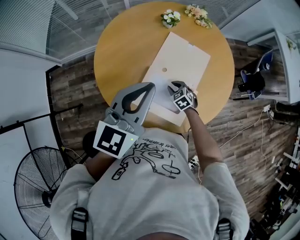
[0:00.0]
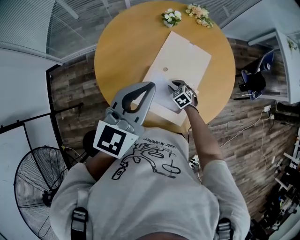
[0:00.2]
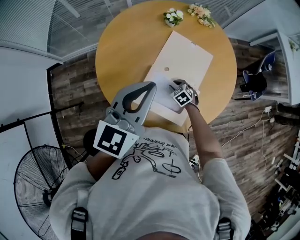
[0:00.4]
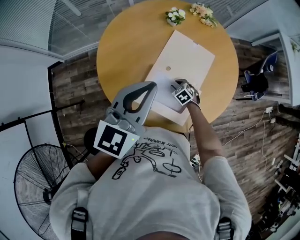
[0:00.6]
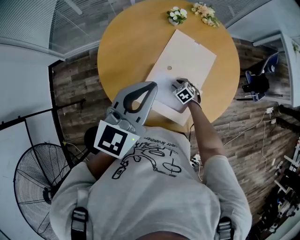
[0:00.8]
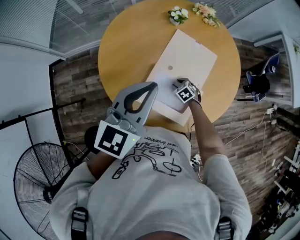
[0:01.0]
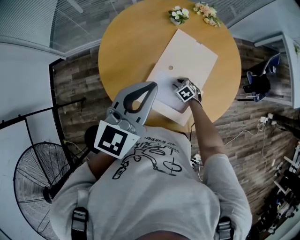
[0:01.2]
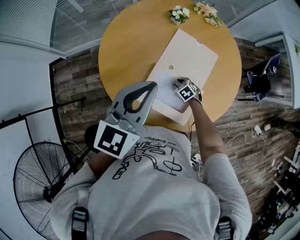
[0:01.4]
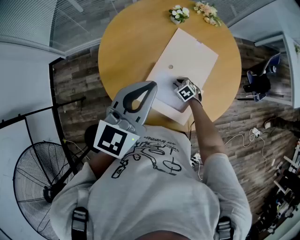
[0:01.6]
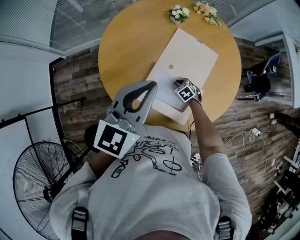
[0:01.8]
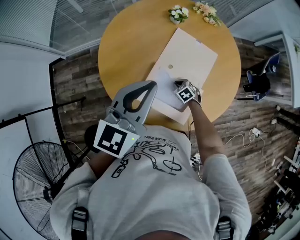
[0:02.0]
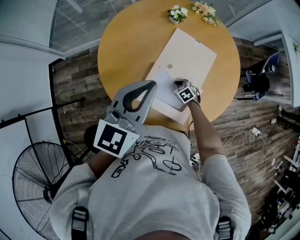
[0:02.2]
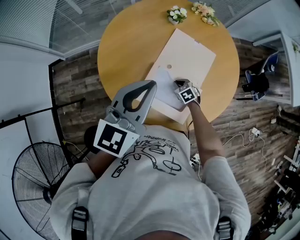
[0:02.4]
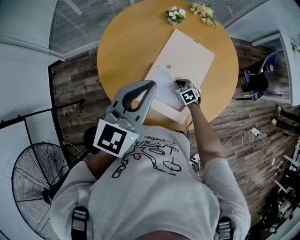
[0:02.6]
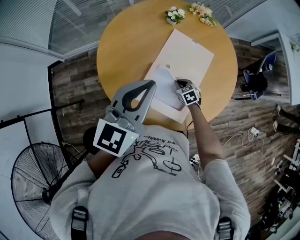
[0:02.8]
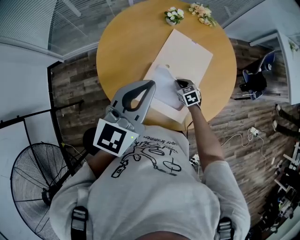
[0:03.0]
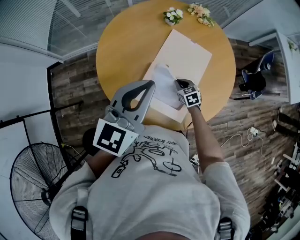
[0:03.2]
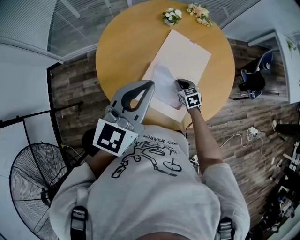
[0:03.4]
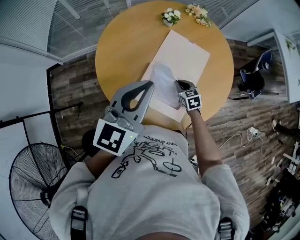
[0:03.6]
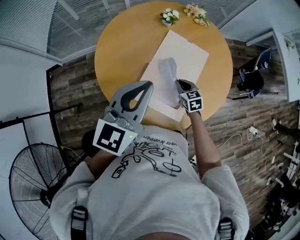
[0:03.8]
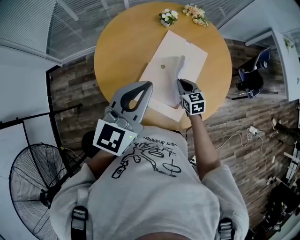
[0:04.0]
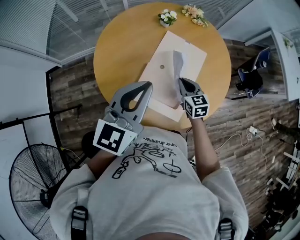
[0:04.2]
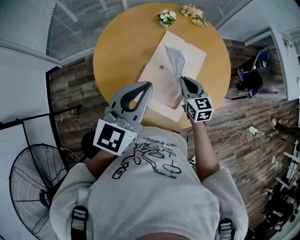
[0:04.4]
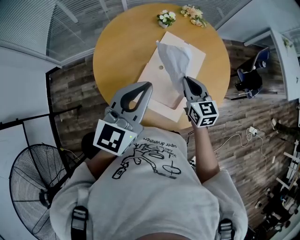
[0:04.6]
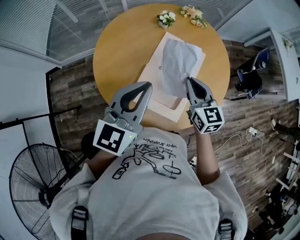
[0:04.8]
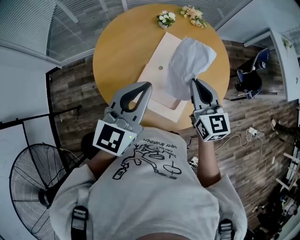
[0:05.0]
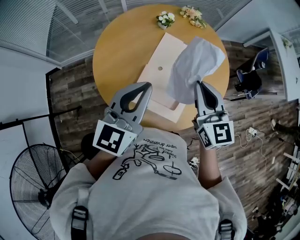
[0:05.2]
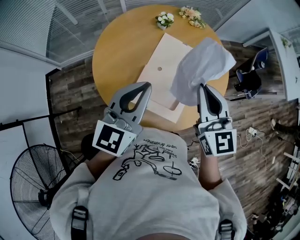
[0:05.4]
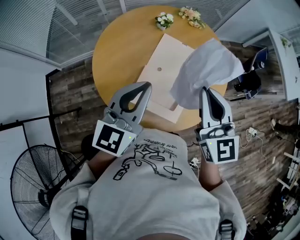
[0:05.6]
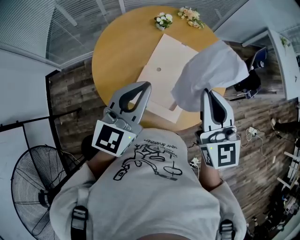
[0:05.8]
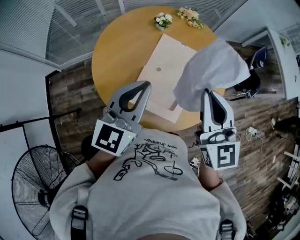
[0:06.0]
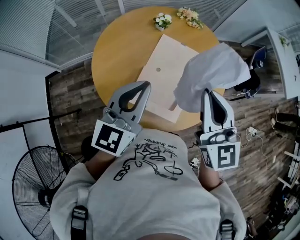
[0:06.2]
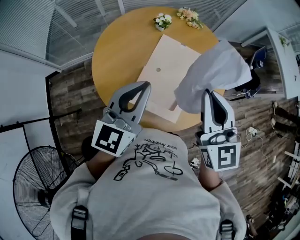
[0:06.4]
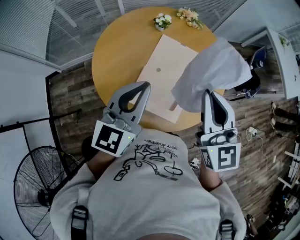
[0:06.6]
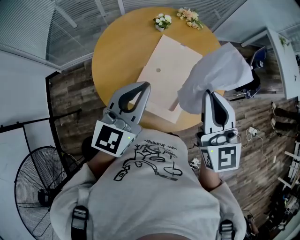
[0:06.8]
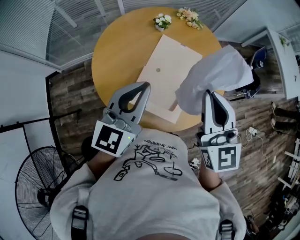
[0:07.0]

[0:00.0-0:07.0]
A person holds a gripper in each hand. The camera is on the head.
0.0 to 1.4 s: The right gripper moves downward, some 5 cm.
1.4 to 2.8 s: The right gripper moves upward, approximately 5 cm, and closes its fingers.
2.8 to 4.2 s: The right gripper shifts roughly 15 cm upward, and turns by some 30 degrees.
4.2 to 5.6 s: The right gripper moves upward, approximately 30 cm, and turns by roughly 30 degrees.
5.6 to 7.0 s: The grippers move only a little.

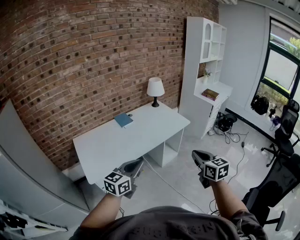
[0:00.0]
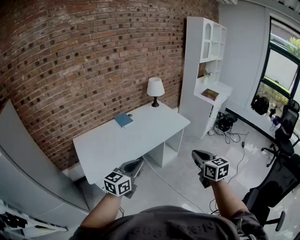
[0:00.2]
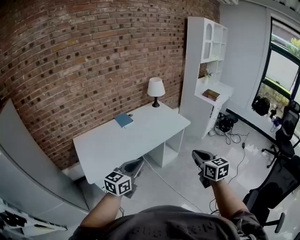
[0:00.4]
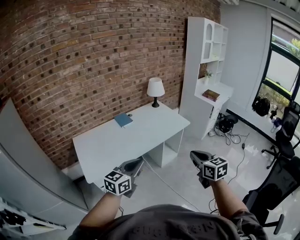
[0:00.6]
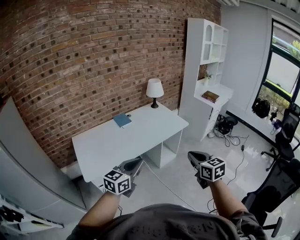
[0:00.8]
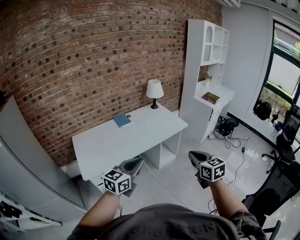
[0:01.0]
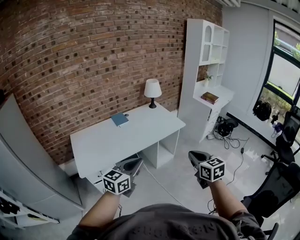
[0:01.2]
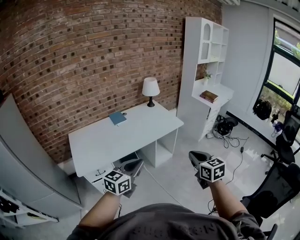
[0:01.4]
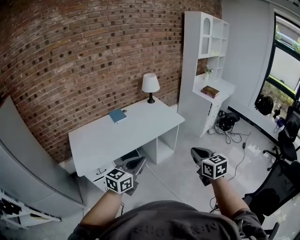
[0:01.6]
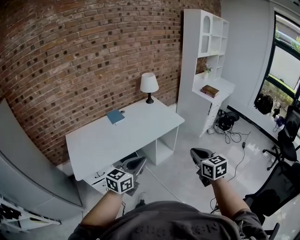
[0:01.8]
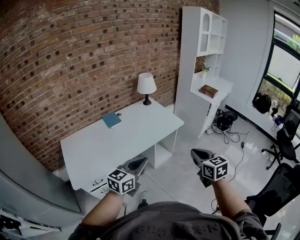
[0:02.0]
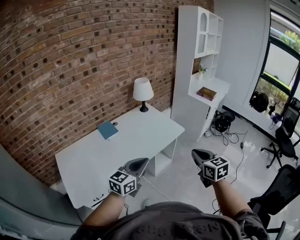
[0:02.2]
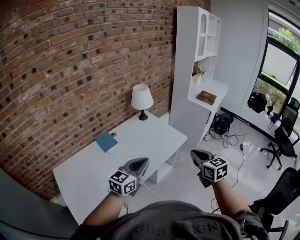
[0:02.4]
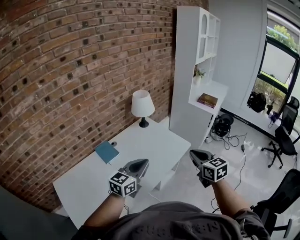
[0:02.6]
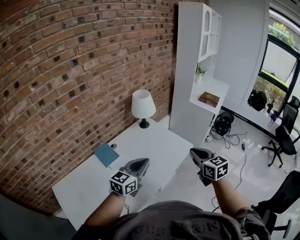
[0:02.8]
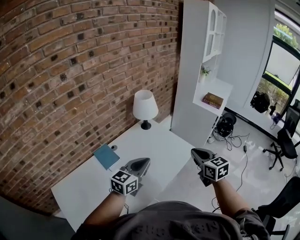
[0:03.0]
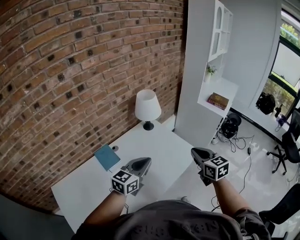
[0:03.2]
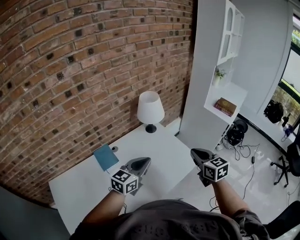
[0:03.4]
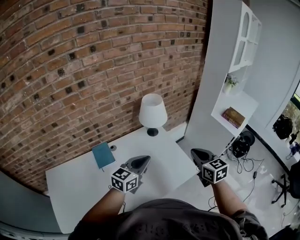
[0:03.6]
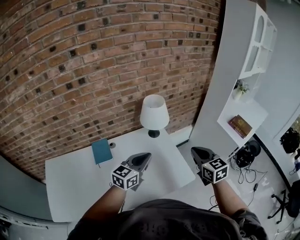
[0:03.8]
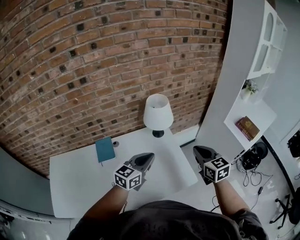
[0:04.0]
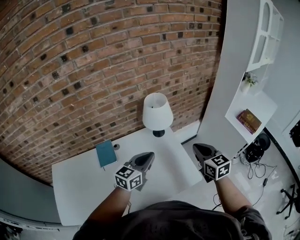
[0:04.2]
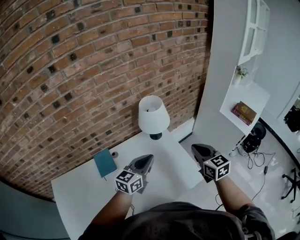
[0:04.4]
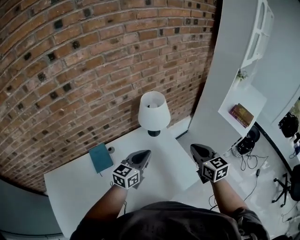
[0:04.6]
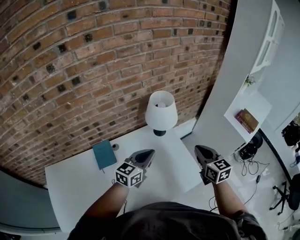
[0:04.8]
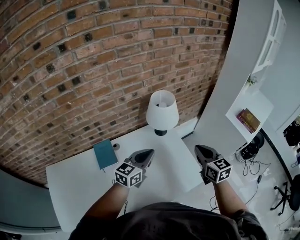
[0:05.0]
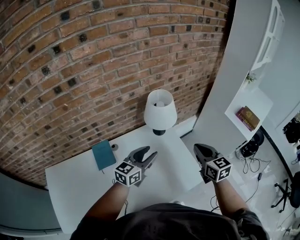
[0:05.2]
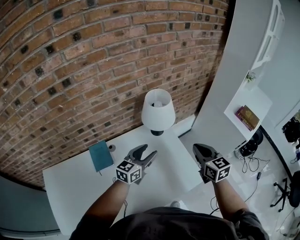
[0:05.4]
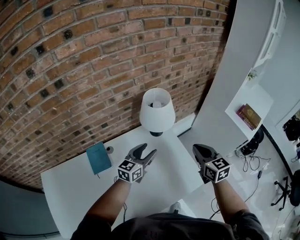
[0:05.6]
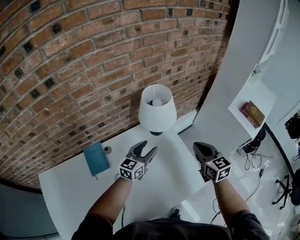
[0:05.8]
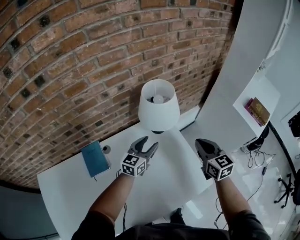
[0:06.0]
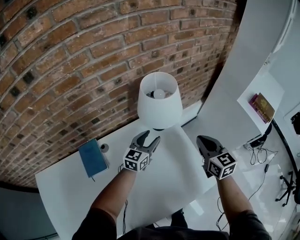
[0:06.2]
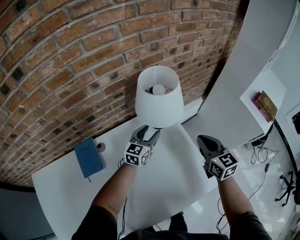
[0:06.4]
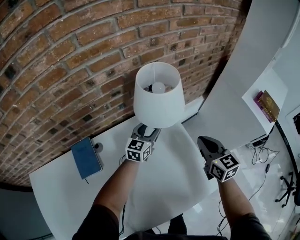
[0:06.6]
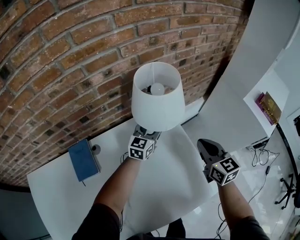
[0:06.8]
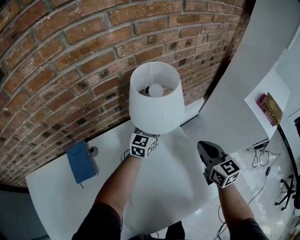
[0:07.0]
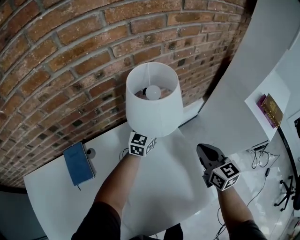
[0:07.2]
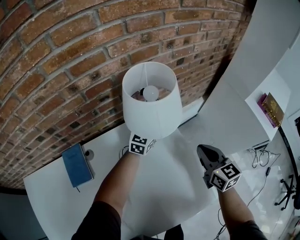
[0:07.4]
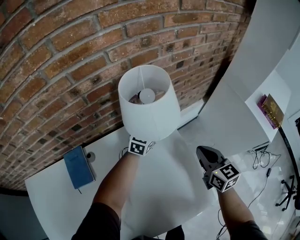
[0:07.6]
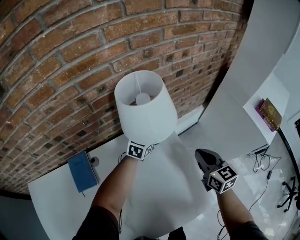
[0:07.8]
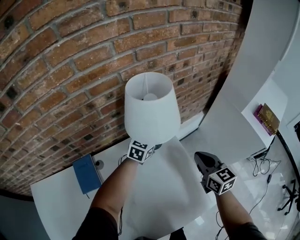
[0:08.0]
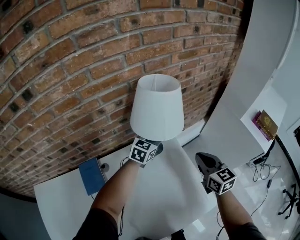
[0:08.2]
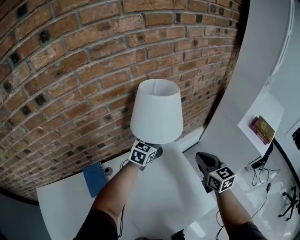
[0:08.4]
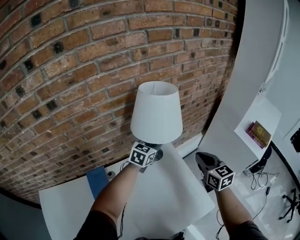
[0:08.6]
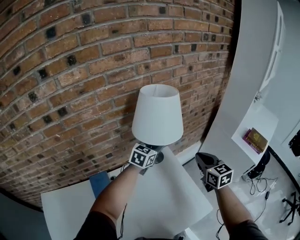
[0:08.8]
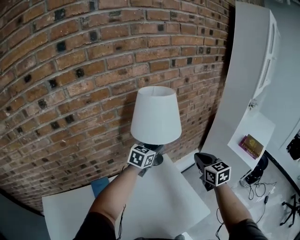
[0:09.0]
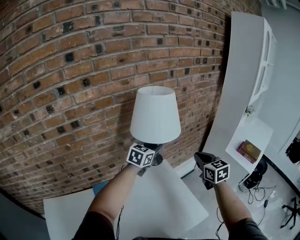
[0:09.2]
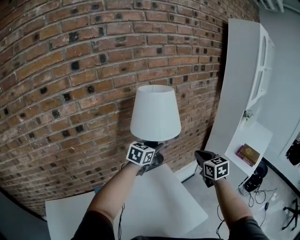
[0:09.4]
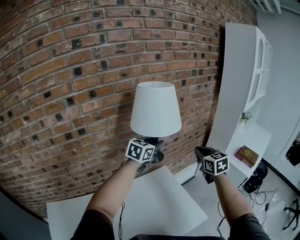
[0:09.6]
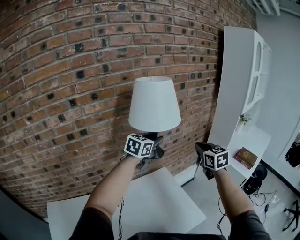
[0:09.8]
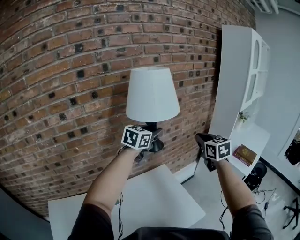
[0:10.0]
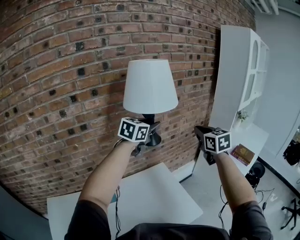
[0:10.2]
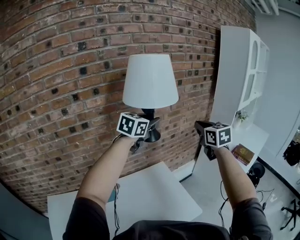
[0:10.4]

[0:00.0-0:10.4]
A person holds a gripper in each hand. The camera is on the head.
0.0 to 1.4 s: The grippers both shift to the right by about 10 cm.
1.4 to 3.0 s: The two grippers travel together, forward, some 50 cm.
3.0 to 4.4 s: Both grippers travel together forward, some 25 cm.
4.4 to 6.0 s: The left gripper travels downward and forward by approximately 25 cm, and opens, while the right gripper travels downward and forward by approximately 15 cm.
6.0 to 7.4 s: The right gripper shifts about 15 cm downward and forward. Meanwhile the left gripper heads forward and downward, covering some 20 cm.
7.4 to 9.0 s: Both grippers travel together upward, roughly 25 cm.
9.0 to 10.4 s: Both grippers travel together upward, some 25 cm.

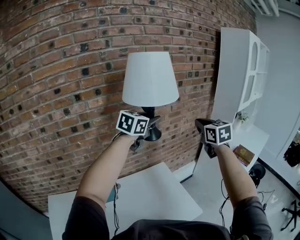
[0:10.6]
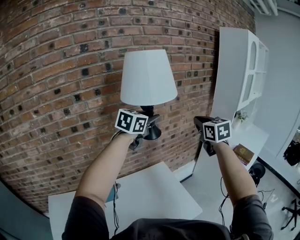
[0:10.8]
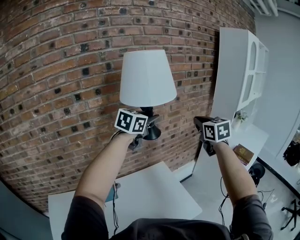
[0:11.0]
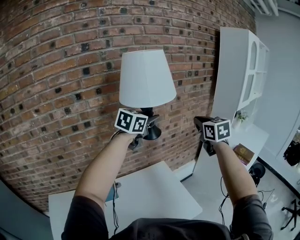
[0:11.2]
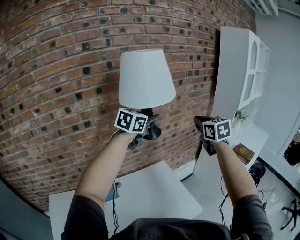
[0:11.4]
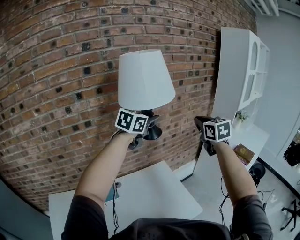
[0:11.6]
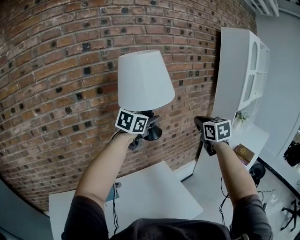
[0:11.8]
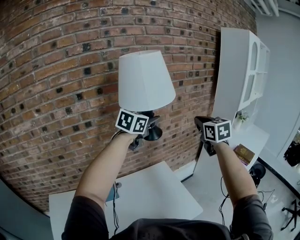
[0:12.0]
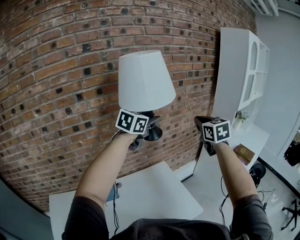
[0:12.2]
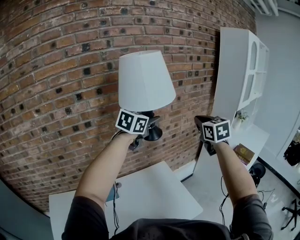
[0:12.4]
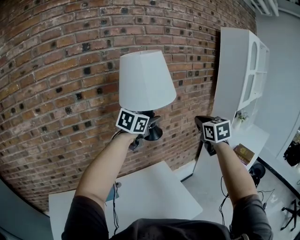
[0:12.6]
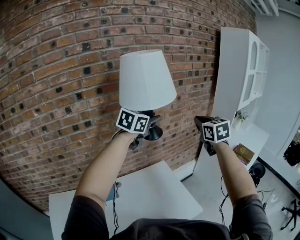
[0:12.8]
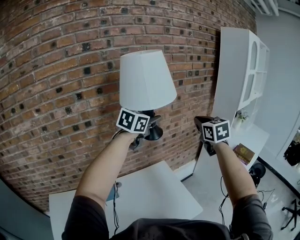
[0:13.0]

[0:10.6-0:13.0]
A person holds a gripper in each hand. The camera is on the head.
10.6 to 11.8 s: Both grippers stay about where they are.
11.8 to 13.0 s: The two grippers keep their place.

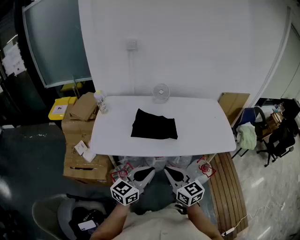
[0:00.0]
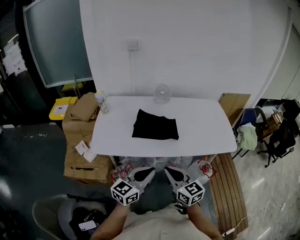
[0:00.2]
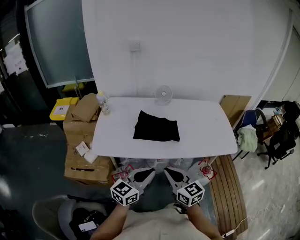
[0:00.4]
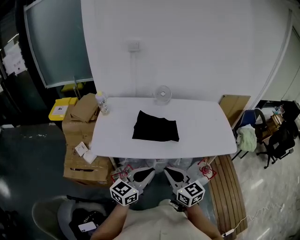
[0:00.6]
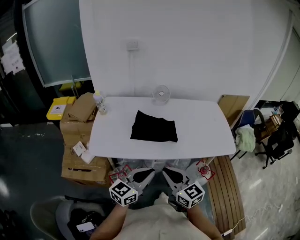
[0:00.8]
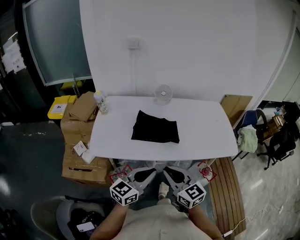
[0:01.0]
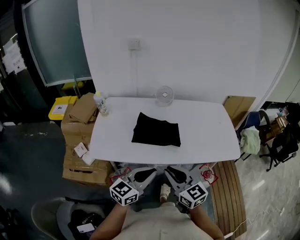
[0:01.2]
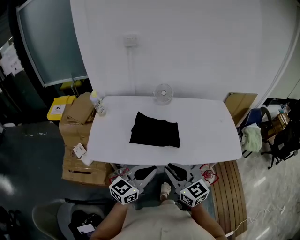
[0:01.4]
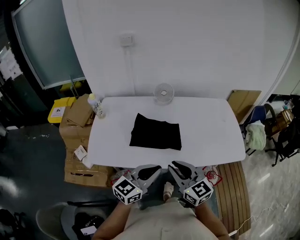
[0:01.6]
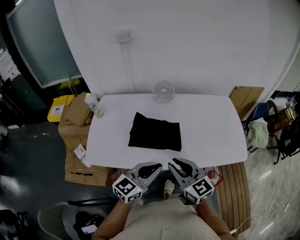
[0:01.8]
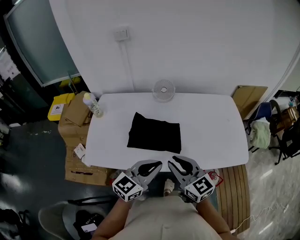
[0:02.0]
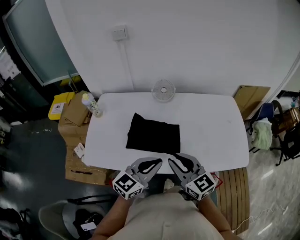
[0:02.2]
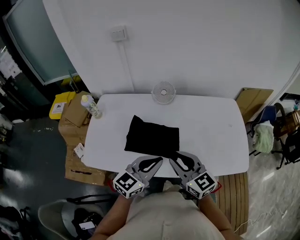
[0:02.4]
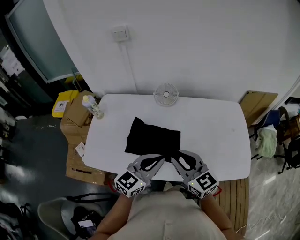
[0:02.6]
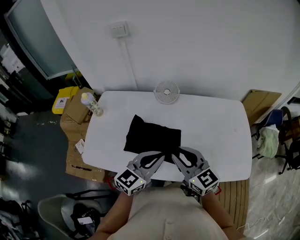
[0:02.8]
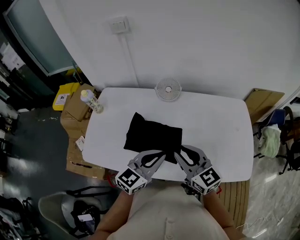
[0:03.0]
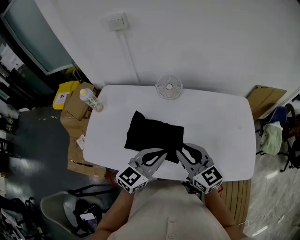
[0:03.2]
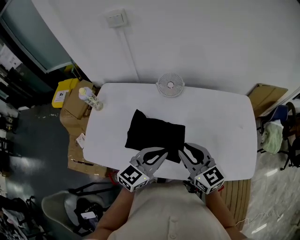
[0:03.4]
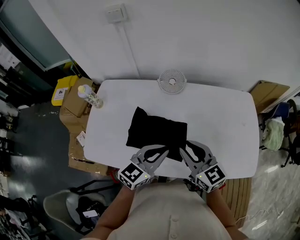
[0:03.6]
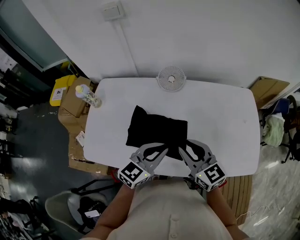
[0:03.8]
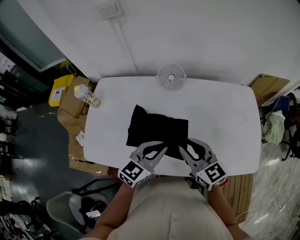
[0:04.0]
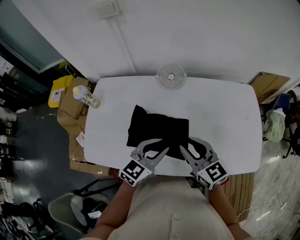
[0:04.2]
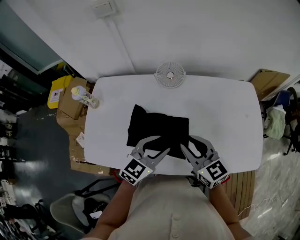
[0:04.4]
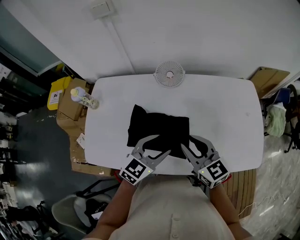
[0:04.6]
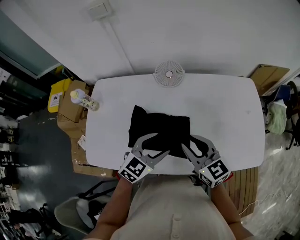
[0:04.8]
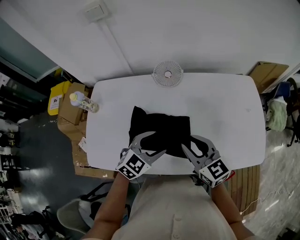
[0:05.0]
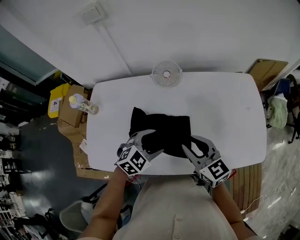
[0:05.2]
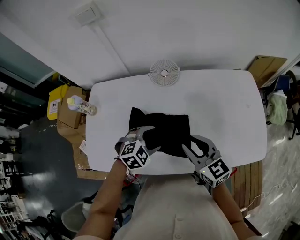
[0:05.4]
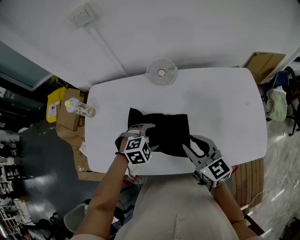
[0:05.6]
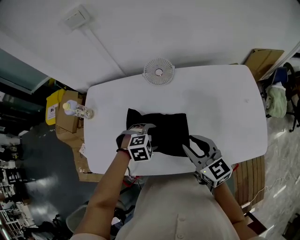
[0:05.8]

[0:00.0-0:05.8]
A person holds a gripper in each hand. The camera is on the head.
0.0 to 1.4 s: Both grippers travel together forward, approximately 10 cm.
1.4 to 2.8 s: Both grippers move forward, approximately 20 cm.
2.8 to 4.4 s: The right gripper goes roughly 5 cm forward, while the left gripper is displaced downward and forward by roughly 10 cm, and opens up.
4.4 to 5.8 s: The left gripper goes some 15 cm downward, points its fingers some 50 degrees further downward, and opens.
